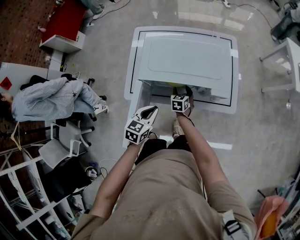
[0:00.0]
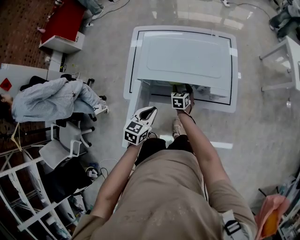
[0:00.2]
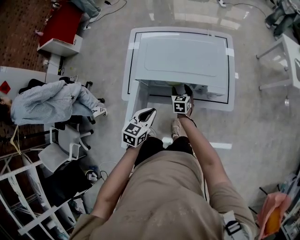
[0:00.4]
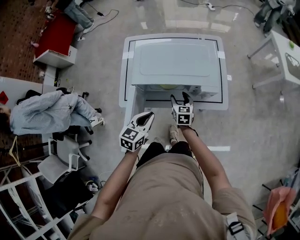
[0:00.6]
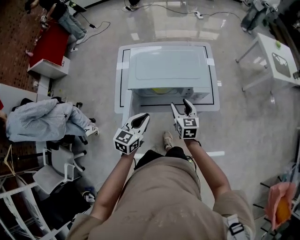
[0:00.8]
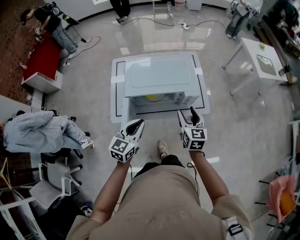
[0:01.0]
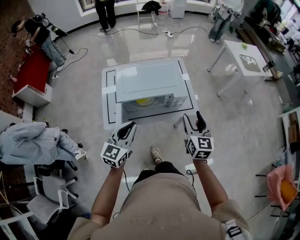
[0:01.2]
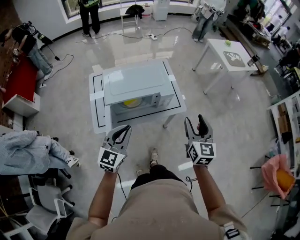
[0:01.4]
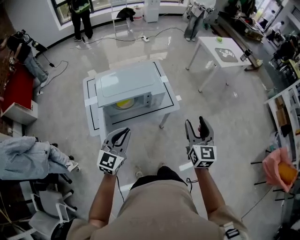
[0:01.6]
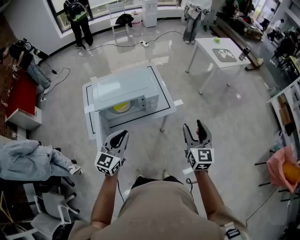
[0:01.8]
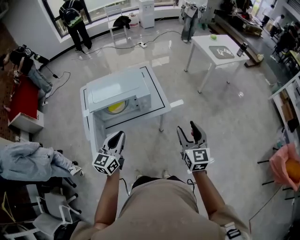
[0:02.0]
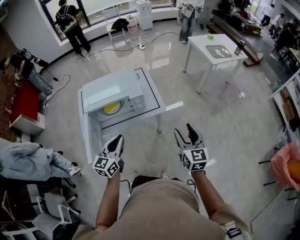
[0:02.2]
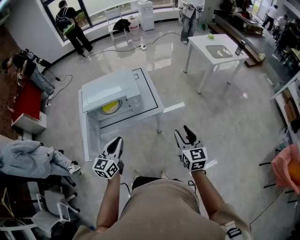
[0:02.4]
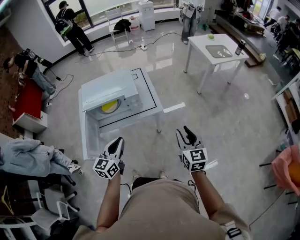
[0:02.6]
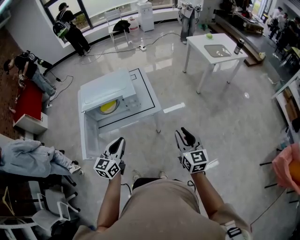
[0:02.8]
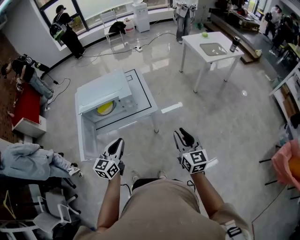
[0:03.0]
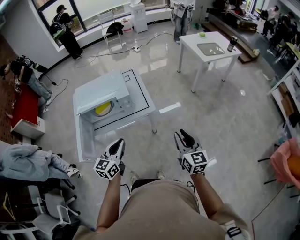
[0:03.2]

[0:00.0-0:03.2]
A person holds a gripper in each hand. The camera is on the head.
0:00.0 to 0:01.6: The left gripper heads upward and backward, covering approximately 25 cm, and changes its angle by approximately 40 degrees; the right gripper travels upward, to the right and backward by roughly 60 cm, and angles its fingers upward, by about 40 degrees.
0:01.6 to 0:03.2: The grippers both shift to the right by about 20 cm. The right gripper closes.

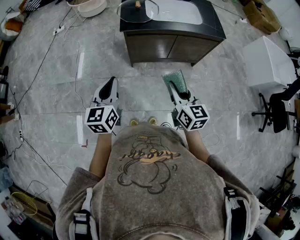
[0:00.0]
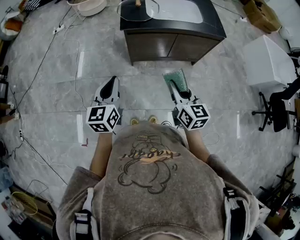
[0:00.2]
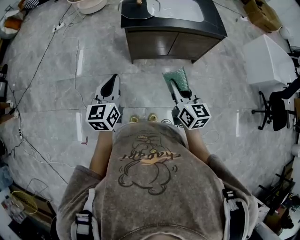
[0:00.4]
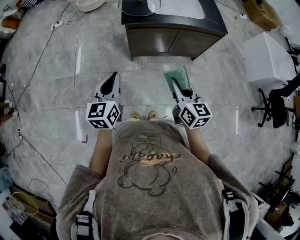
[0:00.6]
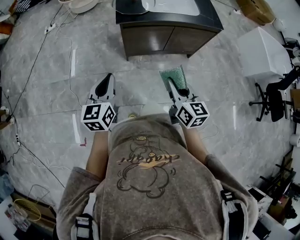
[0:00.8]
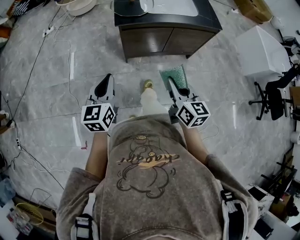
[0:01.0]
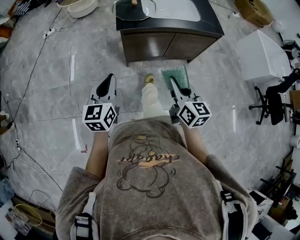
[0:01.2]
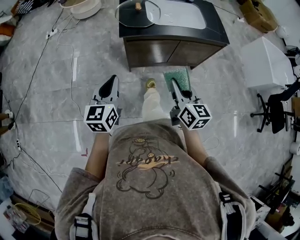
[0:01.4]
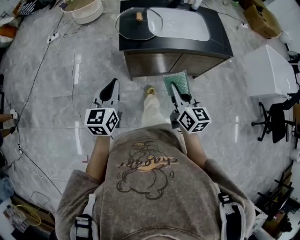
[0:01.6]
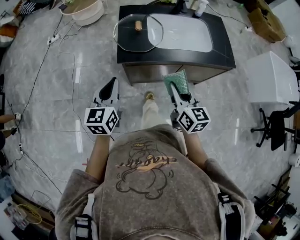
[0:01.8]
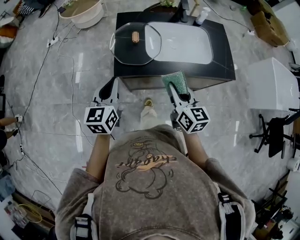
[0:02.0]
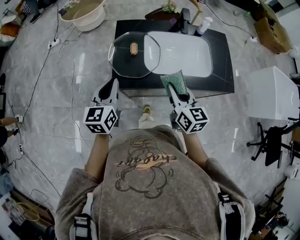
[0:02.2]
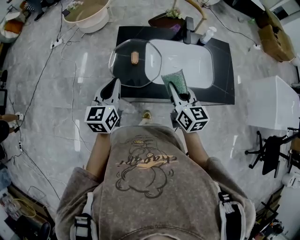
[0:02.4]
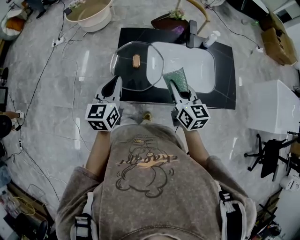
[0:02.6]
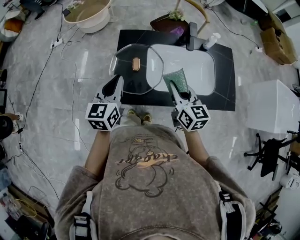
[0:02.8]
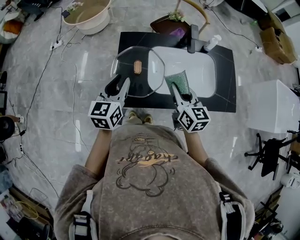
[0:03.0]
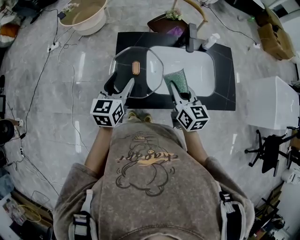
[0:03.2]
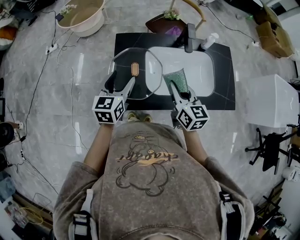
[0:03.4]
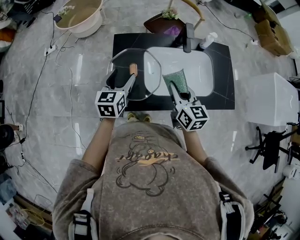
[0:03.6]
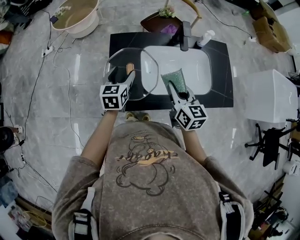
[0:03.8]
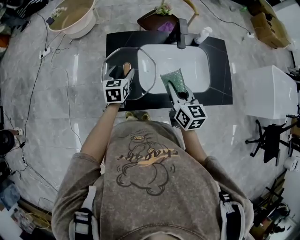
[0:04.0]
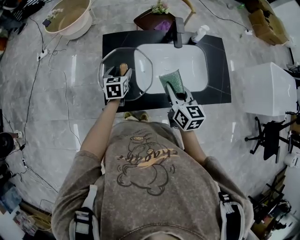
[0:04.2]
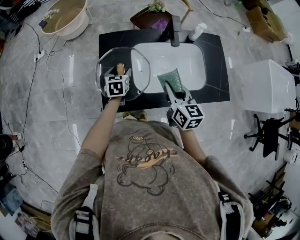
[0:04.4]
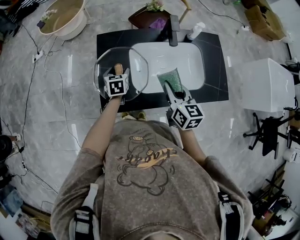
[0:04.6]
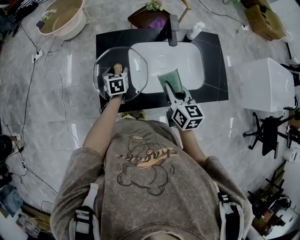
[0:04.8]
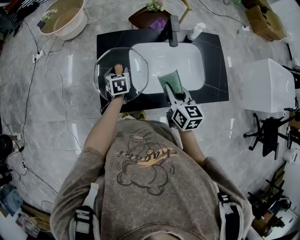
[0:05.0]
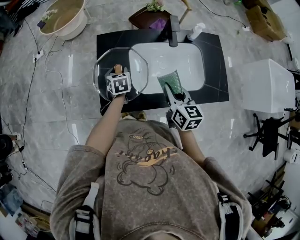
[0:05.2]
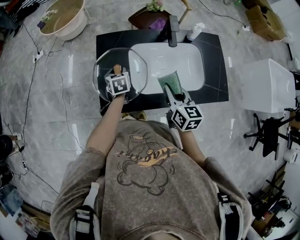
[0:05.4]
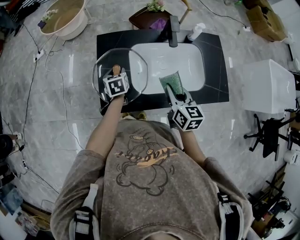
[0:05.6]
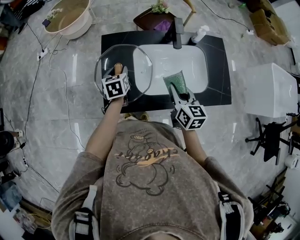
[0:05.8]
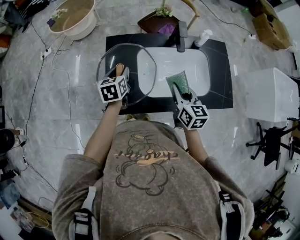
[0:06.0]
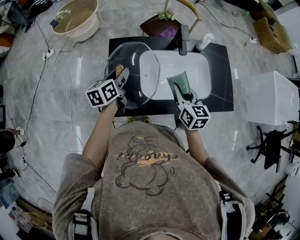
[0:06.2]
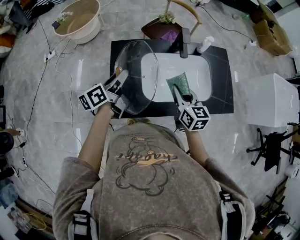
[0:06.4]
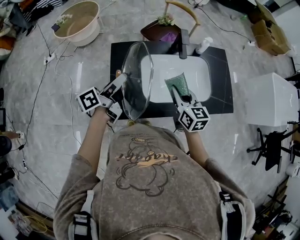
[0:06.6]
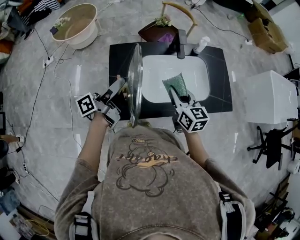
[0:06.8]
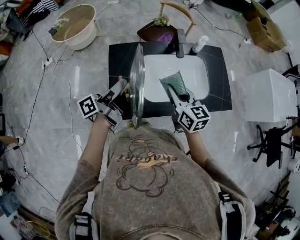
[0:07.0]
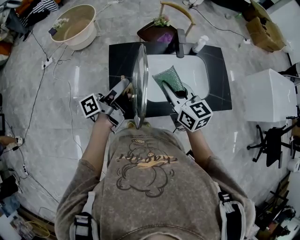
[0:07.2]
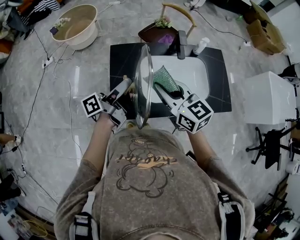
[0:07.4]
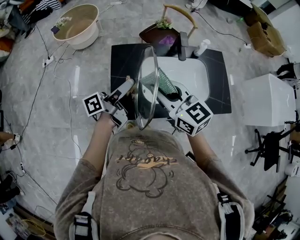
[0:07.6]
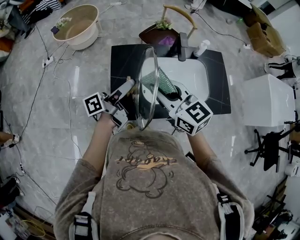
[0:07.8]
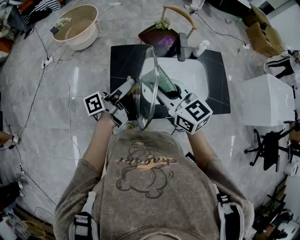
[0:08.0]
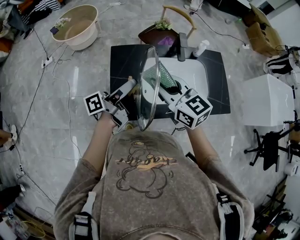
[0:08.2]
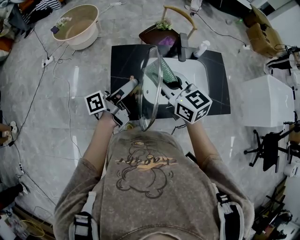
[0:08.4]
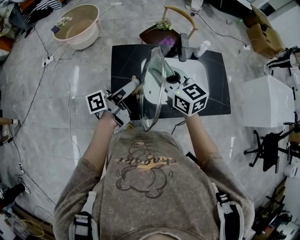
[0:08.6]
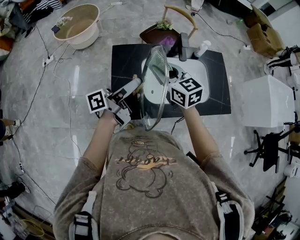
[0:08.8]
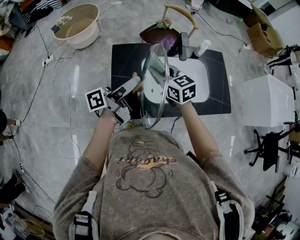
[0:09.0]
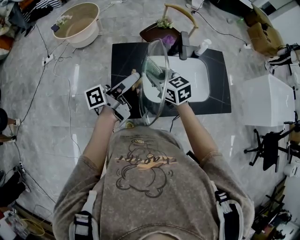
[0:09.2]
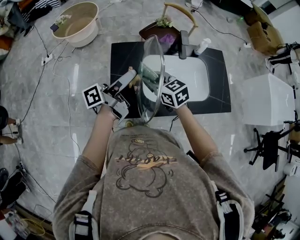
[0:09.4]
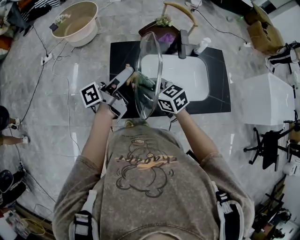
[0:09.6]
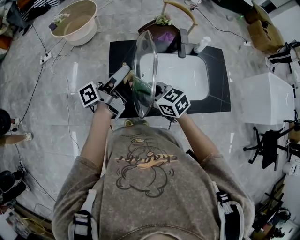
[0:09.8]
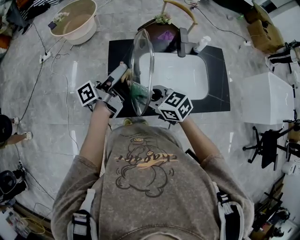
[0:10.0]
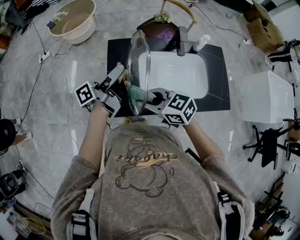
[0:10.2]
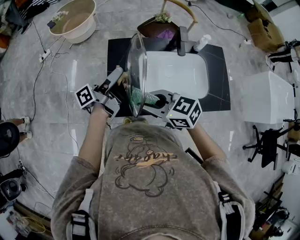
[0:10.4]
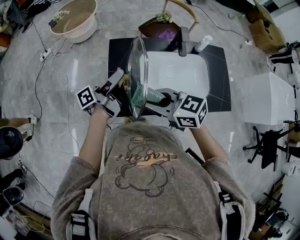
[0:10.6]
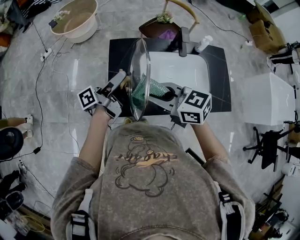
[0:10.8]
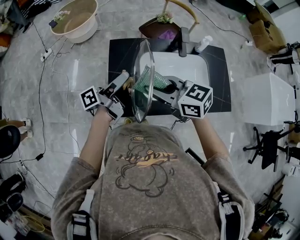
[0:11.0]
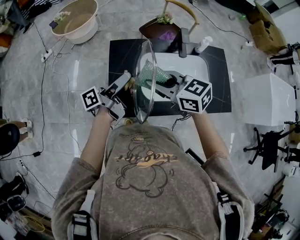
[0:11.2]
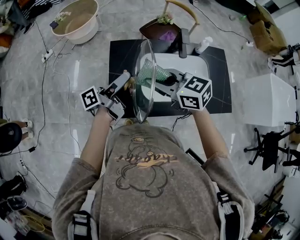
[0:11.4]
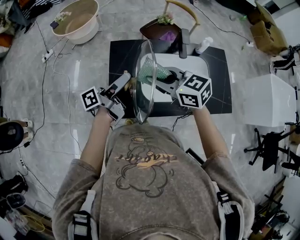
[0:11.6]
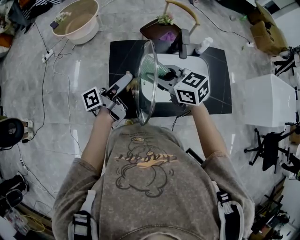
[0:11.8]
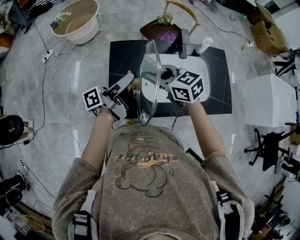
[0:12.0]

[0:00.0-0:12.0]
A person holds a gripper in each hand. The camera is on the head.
0:00.0 to 0:01.6: The two grippers go some 15 cm forward.
0:01.6 to 0:03.0: The two grippers go roughly 35 cm forward.
0:03.0 to 0:04.4: The left gripper heads downward and forward, covering about 20 cm, turns by some 30 degrees, and opens its fingers.
0:04.4 to 0:06.0: The left gripper is displaced upward by about 10 cm, and closes up.
0:06.0 to 0:07.6: The right gripper shifts about 20 cm upward and to the left, and changes its angle by approximately 30 degrees. The left gripper moves upward and backward, about 15 cm, and points its fingers about 50 degrees further upward.
0:07.6 to 0:09.0: The right gripper travels downward and forward by approximately 15 cm.
0:09.0 to 0:10.4: The right gripper travels backward and to the left by roughly 15 cm, and rotates roughly 30 degrees. Meanwhile the left gripper moves about 5 cm.
0:10.4 to 0:12.0: The right gripper is displaced forward and to the right by roughly 10 cm.

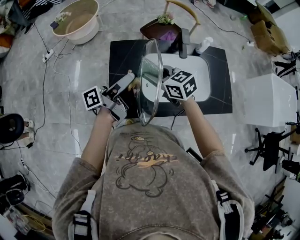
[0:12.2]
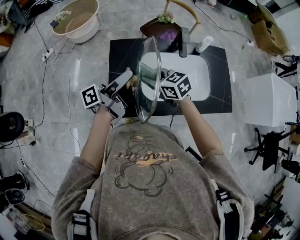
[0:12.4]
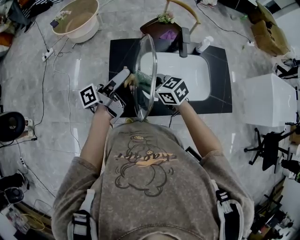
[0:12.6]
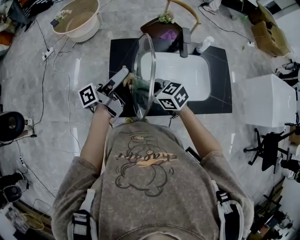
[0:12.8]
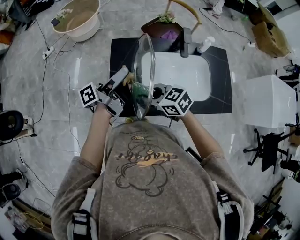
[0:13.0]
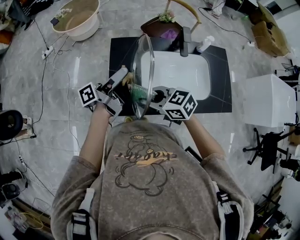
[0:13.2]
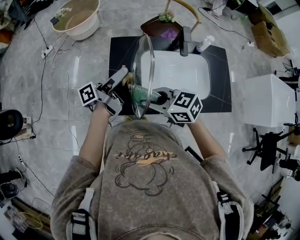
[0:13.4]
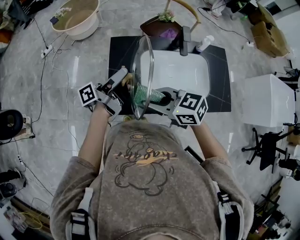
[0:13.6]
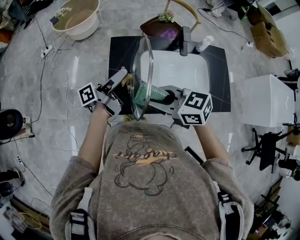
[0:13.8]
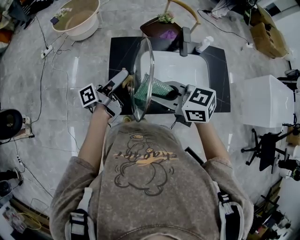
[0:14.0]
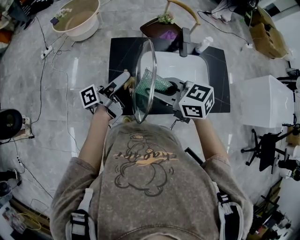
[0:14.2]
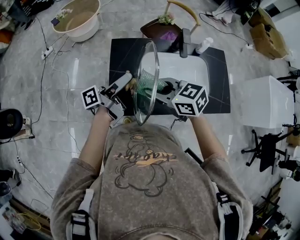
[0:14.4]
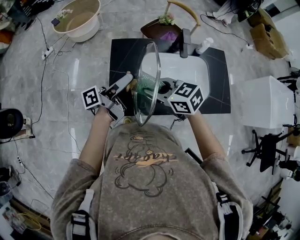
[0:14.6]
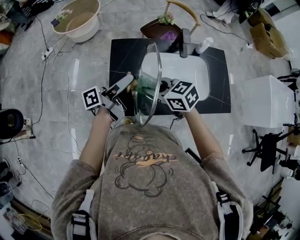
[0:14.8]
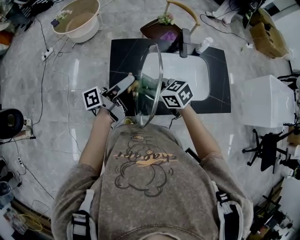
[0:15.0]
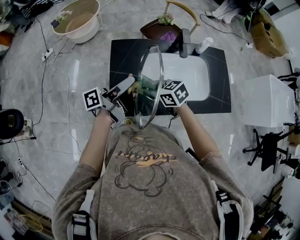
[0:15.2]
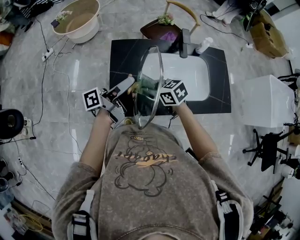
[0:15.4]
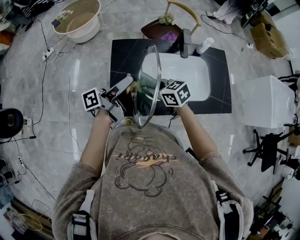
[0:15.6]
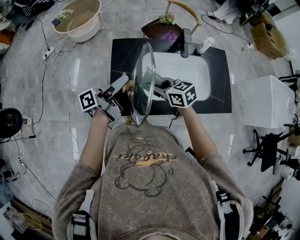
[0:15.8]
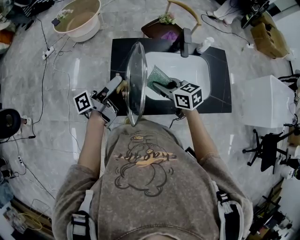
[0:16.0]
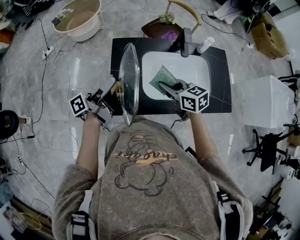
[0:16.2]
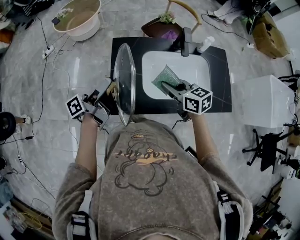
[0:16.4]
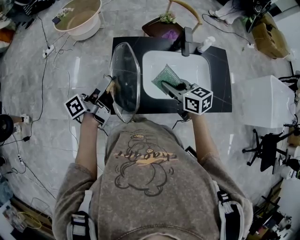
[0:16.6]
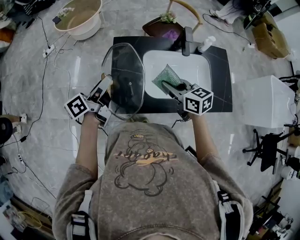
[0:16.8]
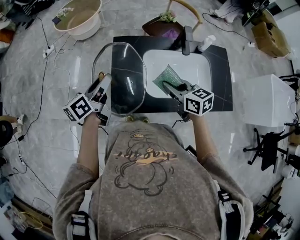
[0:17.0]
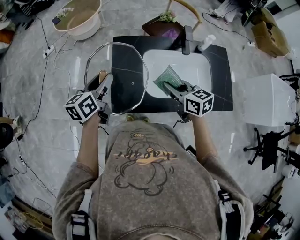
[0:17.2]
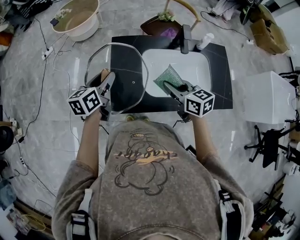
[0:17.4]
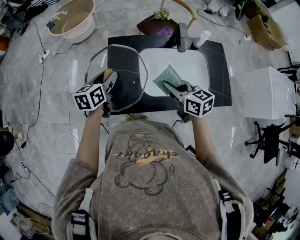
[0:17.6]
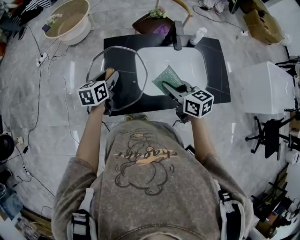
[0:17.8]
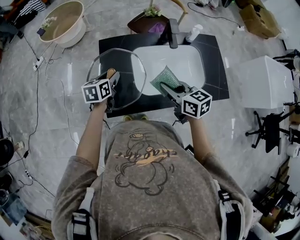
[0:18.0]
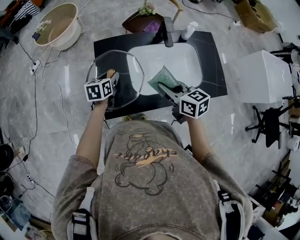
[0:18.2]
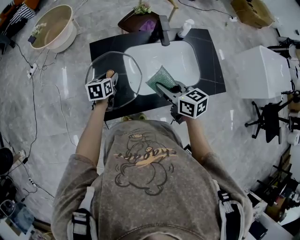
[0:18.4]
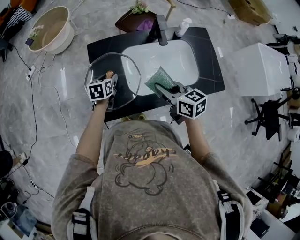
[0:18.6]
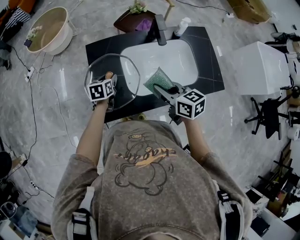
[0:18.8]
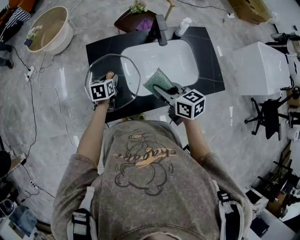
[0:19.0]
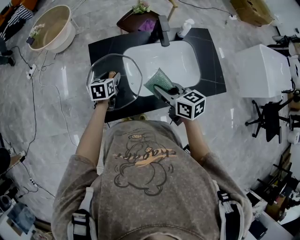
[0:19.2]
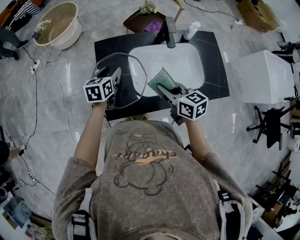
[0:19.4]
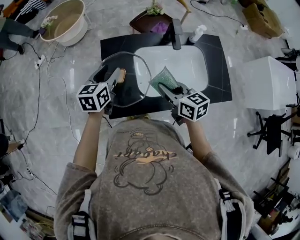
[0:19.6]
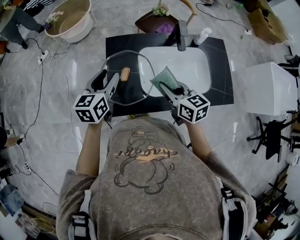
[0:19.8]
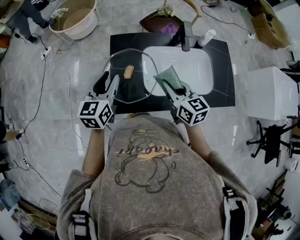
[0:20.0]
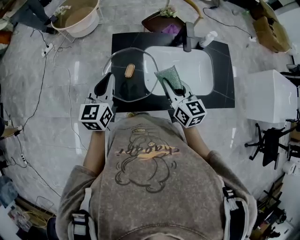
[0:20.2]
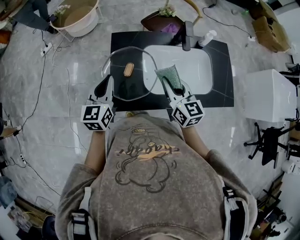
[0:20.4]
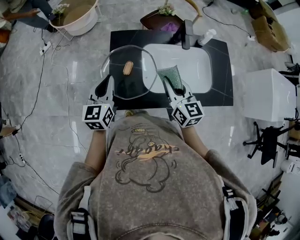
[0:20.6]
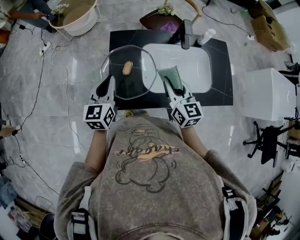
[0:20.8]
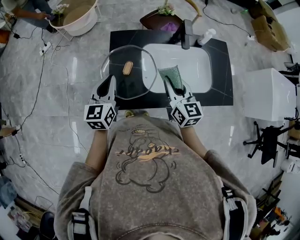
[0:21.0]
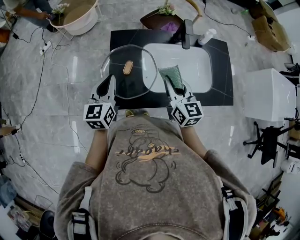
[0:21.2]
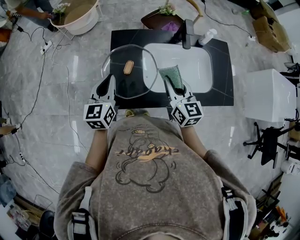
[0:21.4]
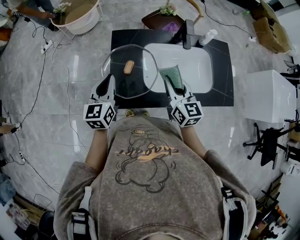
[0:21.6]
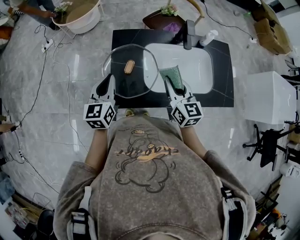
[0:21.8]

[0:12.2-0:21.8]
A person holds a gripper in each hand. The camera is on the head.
0:12.2 to 0:13.8: The right gripper moves backward and upward, about 15 cm.
0:13.8 to 0:15.4: The right gripper moves downward and forward, approximately 15 cm.
0:15.4 to 0:17.0: The right gripper heads to the right and upward, covering roughly 10 cm. The left gripper goes approximately 10 cm to the left, and swivels some 50 degrees.
0:17.0 to 0:18.6: The left gripper heads downward and to the right, covering approximately 20 cm, and angles its fingers downward, by roughly 30 degrees.
0:18.6 to 0:20.2: The left gripper is displaced upward by approximately 20 cm, tilts its fingers some 30 degrees upward, and closes. The right gripper shifts by some 5 cm.
0:20.2 to 0:21.8: The grippers make only small movements.
